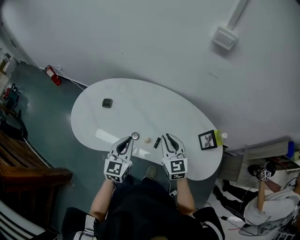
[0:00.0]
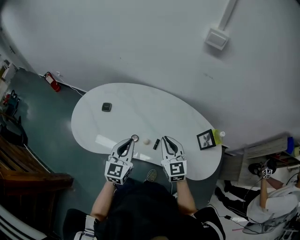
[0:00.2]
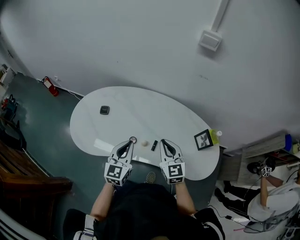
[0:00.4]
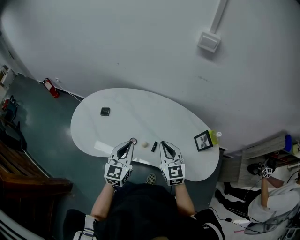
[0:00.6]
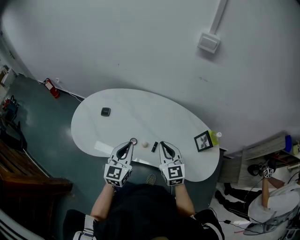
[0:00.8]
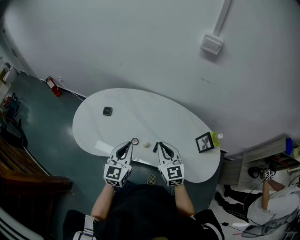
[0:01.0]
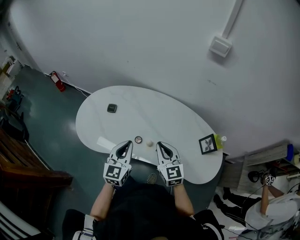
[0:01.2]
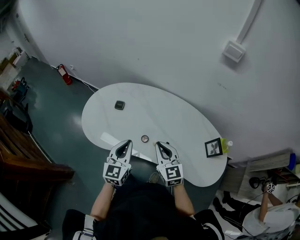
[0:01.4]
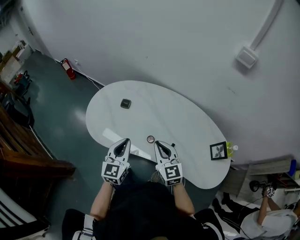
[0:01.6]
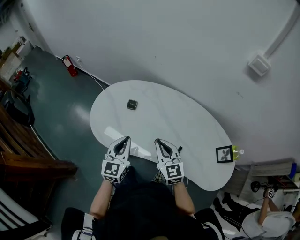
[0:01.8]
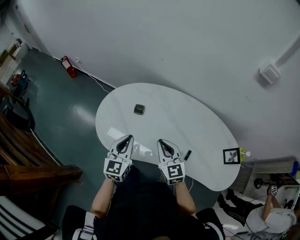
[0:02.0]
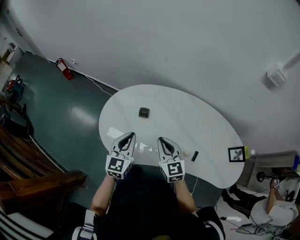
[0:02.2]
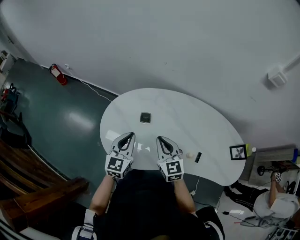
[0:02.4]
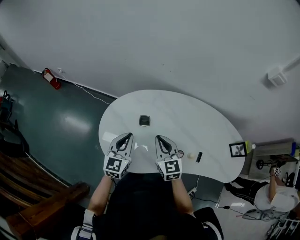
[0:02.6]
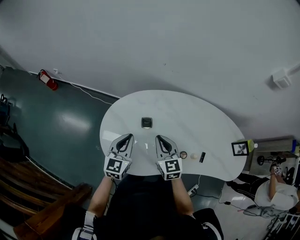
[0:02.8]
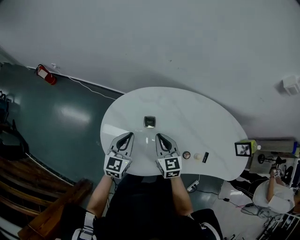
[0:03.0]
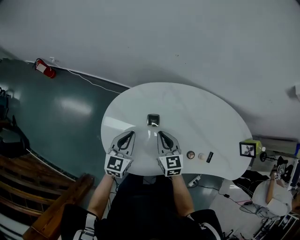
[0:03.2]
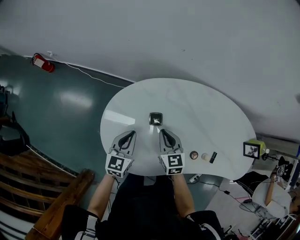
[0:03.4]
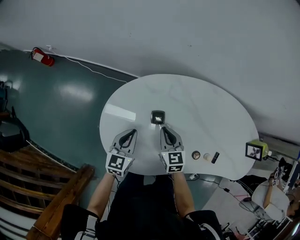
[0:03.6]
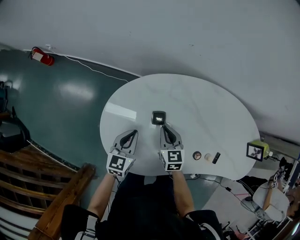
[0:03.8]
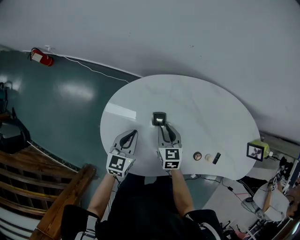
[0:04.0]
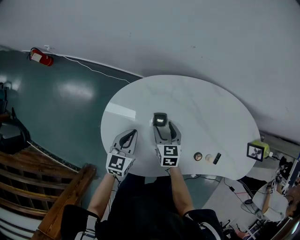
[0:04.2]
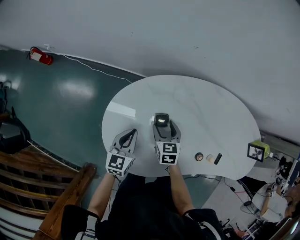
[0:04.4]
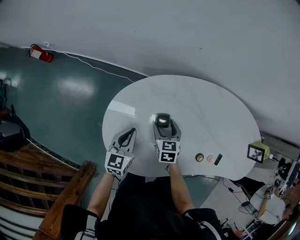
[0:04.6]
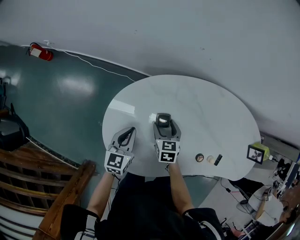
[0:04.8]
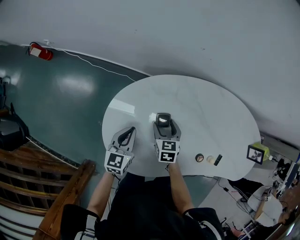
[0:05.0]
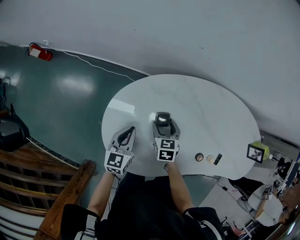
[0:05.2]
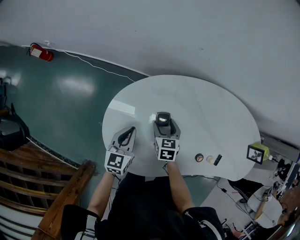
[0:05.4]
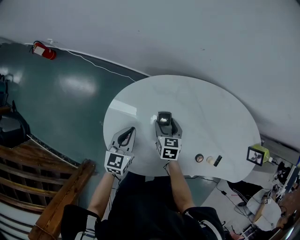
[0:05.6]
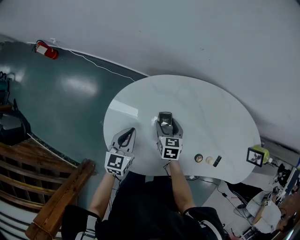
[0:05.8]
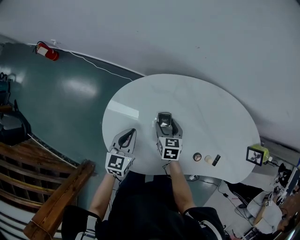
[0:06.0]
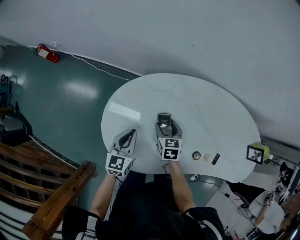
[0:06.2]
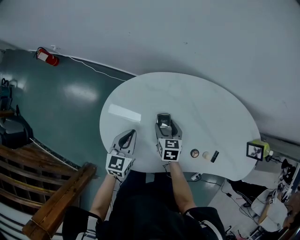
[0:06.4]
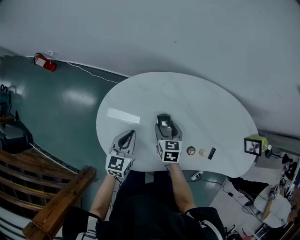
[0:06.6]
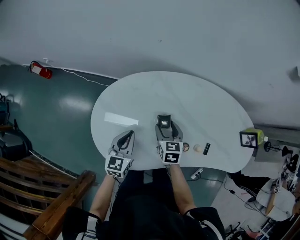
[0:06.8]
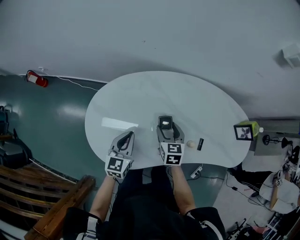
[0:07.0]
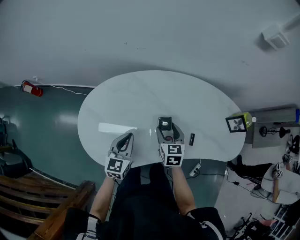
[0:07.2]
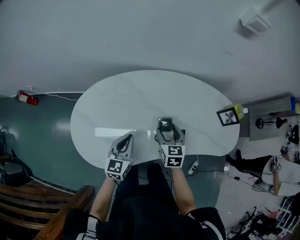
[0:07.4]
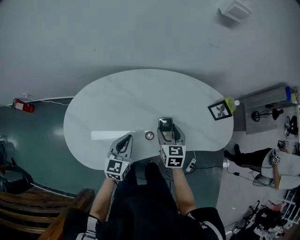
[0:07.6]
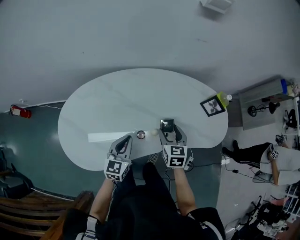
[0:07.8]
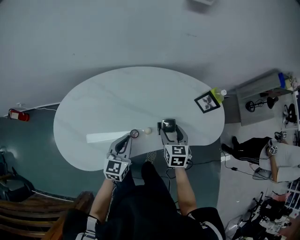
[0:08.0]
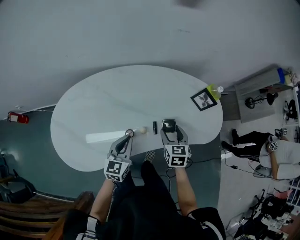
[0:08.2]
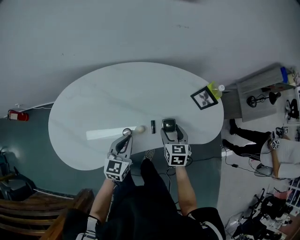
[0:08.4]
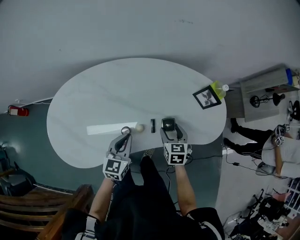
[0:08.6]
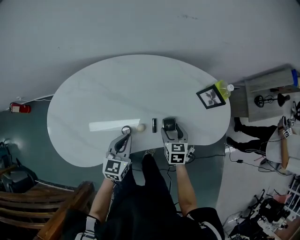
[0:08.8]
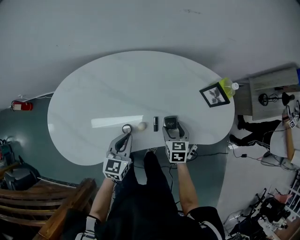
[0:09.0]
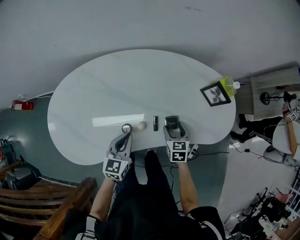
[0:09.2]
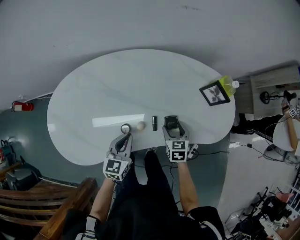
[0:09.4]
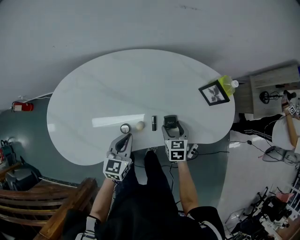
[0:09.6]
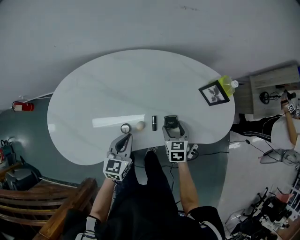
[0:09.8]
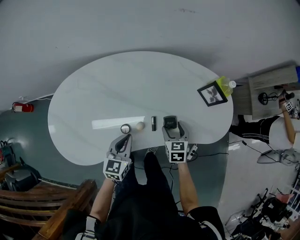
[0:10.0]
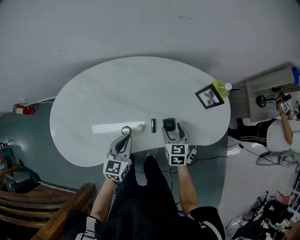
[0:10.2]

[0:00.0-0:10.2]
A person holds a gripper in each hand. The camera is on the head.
0:00.0 to 0:01.4: The left gripper travels to the left by about 5 cm. The right gripper shifts some 10 cm to the left.
0:01.4 to 0:03.0: Both grippers travel together to the left and forward, some 40 cm. The right gripper changes its angle by roughly 20 degrees.
0:03.0 to 0:04.4: Both grippers travel together downward and forward, approximately 15 cm. The right gripper rotates some 20 degrees, and opens up.
0:04.4 to 0:05.8: The grippers stay close to where they were, moving slightly.
0:05.8 to 0:07.2: The left gripper travels to the right by roughly 20 cm, while the right gripper heads to the right, upward and backward, covering about 25 cm.
0:07.2 to 0:08.8: Both grippers travel together to the right, approximately 30 cm.
0:08.8 to 0:10.2: There are only small adjustments of the grippers.

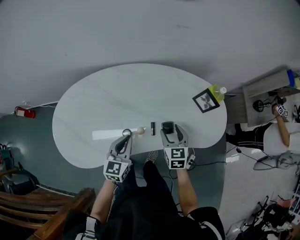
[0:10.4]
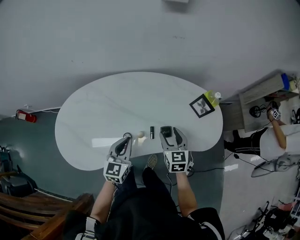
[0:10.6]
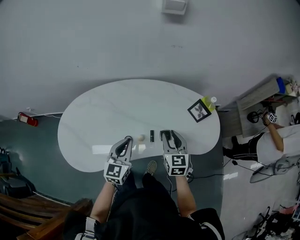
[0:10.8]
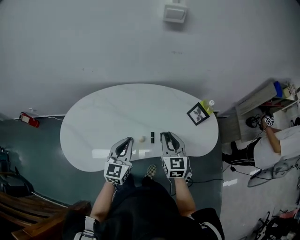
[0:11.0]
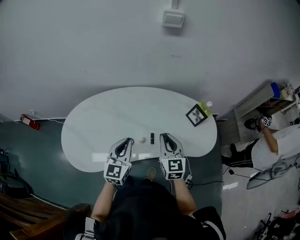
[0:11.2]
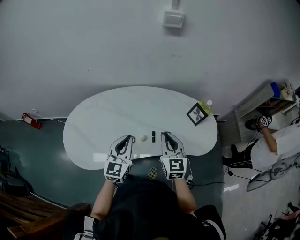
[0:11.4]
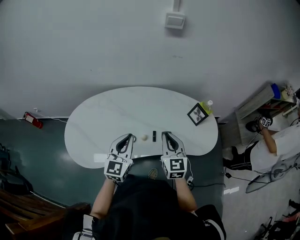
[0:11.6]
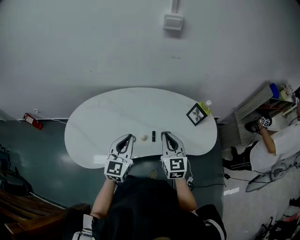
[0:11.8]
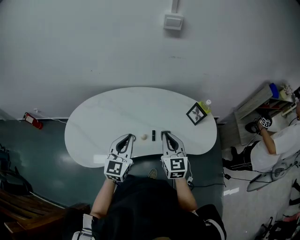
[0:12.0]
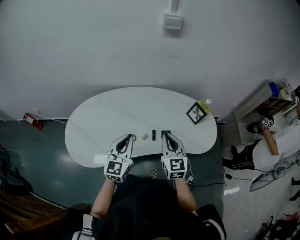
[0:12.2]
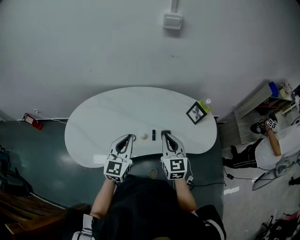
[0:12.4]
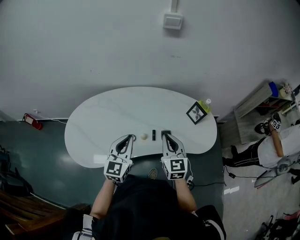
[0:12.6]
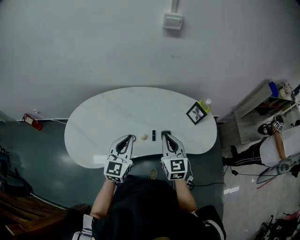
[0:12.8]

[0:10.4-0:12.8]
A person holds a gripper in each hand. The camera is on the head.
0:10.4 to 0:11.6: The left gripper goes approximately 15 cm upward; the right gripper moves upward and backward, roughly 20 cm, changes its angle by approximately 20 degrees, and closes up.
0:11.6 to 0:12.8: The grippers make only small movements.

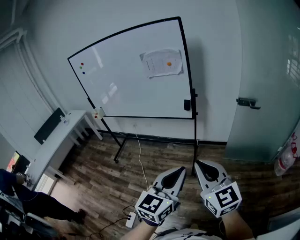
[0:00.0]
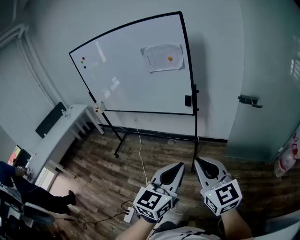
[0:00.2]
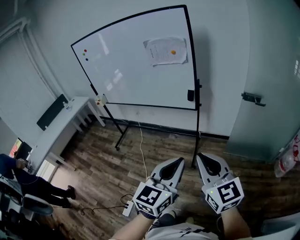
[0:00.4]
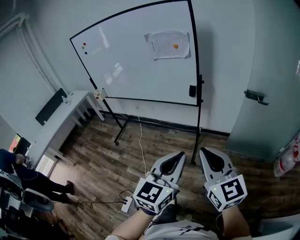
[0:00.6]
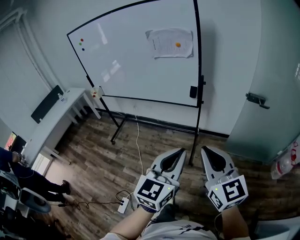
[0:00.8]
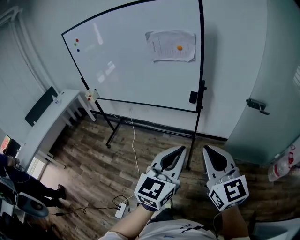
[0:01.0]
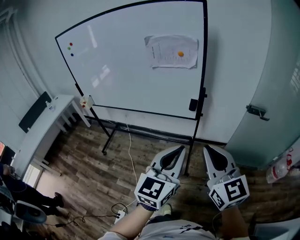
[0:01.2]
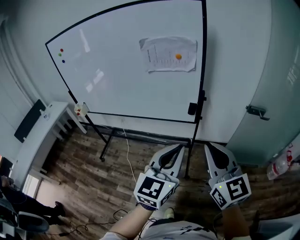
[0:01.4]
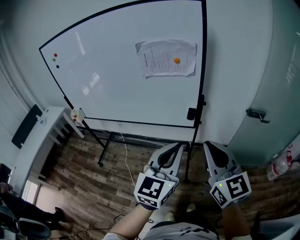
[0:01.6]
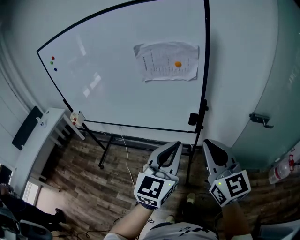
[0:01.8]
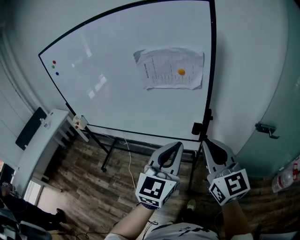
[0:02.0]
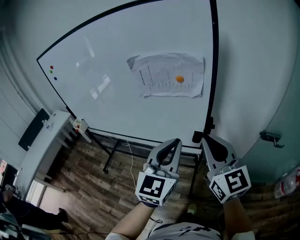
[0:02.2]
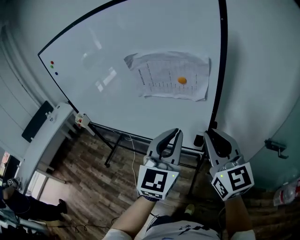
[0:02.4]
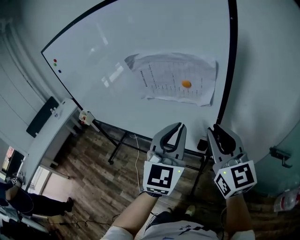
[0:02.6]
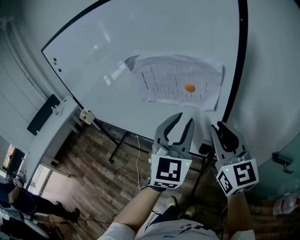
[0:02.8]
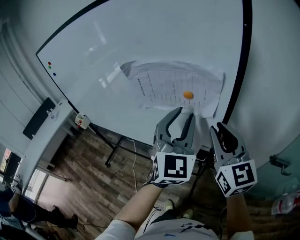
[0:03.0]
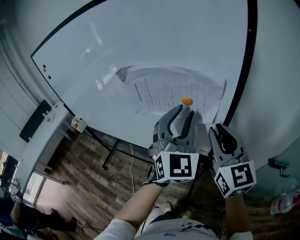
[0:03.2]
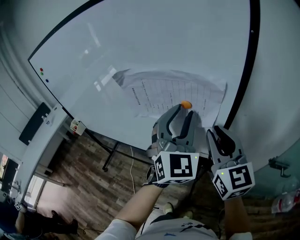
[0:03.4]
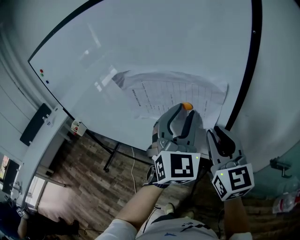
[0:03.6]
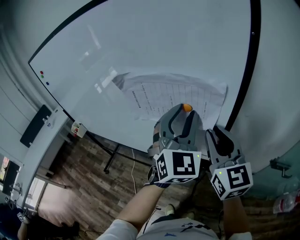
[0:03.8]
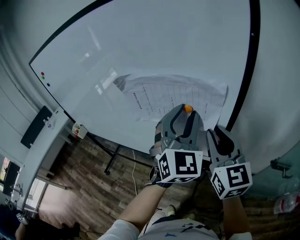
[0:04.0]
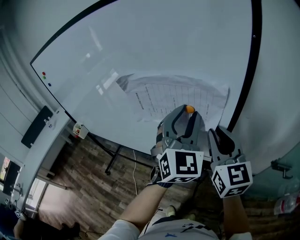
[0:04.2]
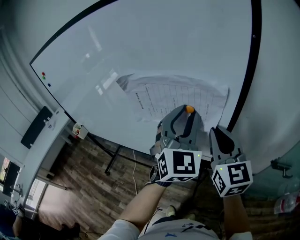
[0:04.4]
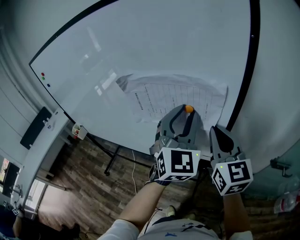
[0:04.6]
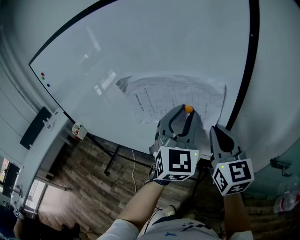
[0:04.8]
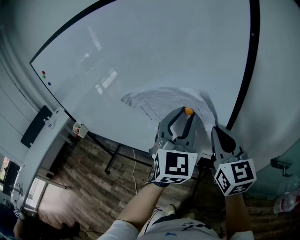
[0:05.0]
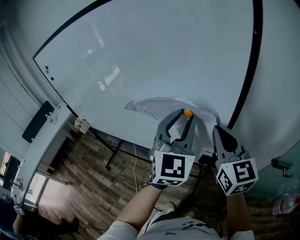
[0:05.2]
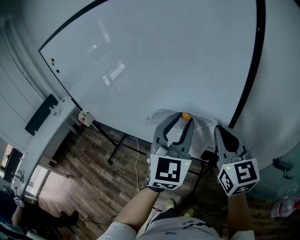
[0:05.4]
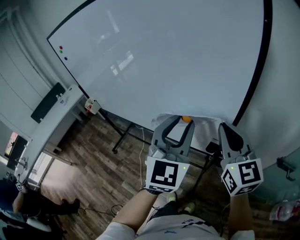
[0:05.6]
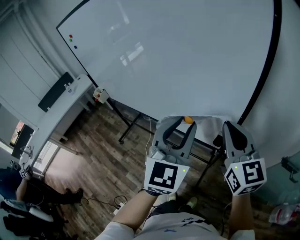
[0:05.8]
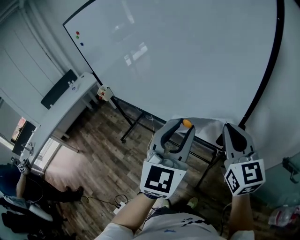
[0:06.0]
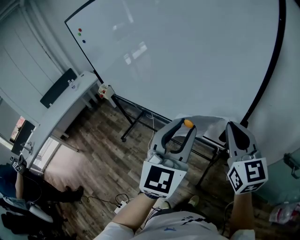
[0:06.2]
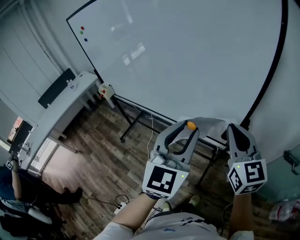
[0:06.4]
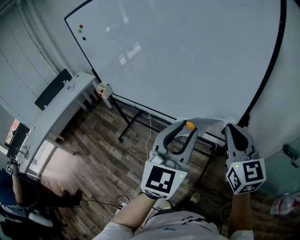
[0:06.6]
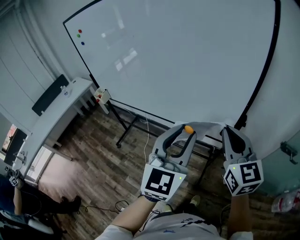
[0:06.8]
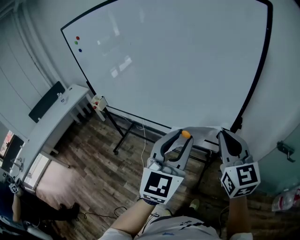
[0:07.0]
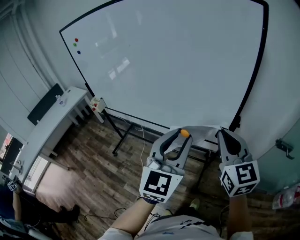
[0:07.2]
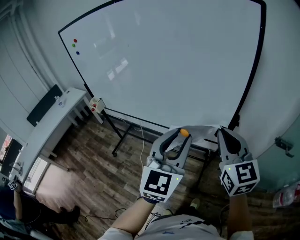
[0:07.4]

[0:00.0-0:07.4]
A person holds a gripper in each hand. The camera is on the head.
0:00.0 to 0:01.4: Both grippers travel together forward, approximately 25 cm.
0:01.4 to 0:03.0: Both grippers are carried forward, some 40 cm. The left gripper changes its angle by about 40 degrees, and opens its fingers.
0:03.0 to 0:04.4: The left gripper heads forward, covering some 5 cm.
0:04.4 to 0:06.0: The right gripper is displaced backward and to the left by roughly 10 cm; the left gripper moves backward and to the left, about 20 cm.
0:06.0 to 0:07.4: The two grippers go about 10 cm backward and to the left.

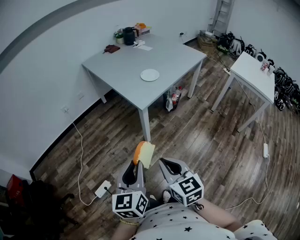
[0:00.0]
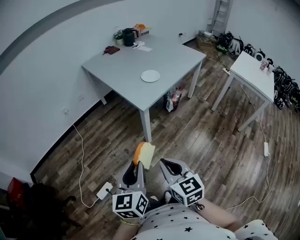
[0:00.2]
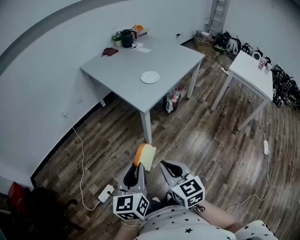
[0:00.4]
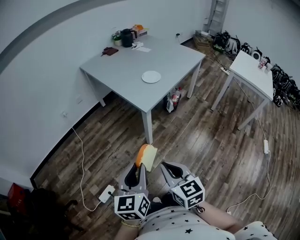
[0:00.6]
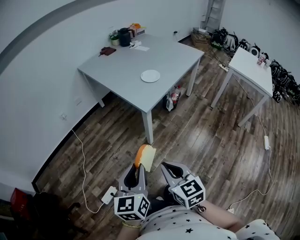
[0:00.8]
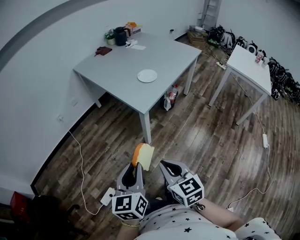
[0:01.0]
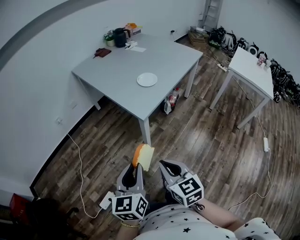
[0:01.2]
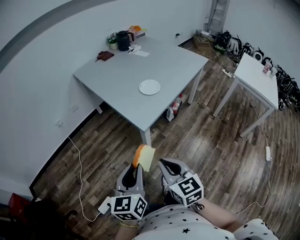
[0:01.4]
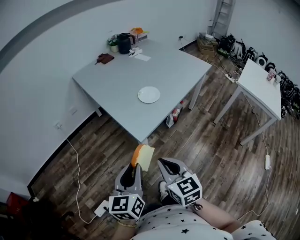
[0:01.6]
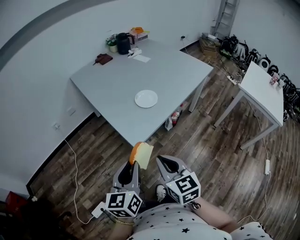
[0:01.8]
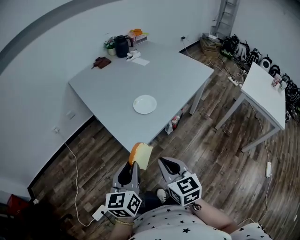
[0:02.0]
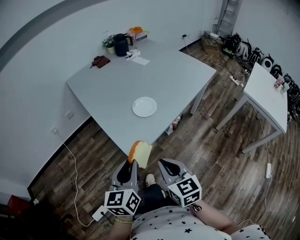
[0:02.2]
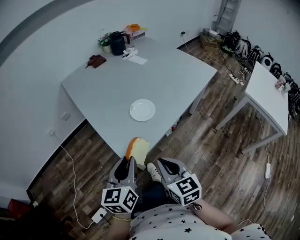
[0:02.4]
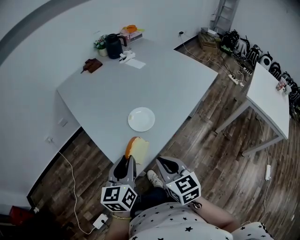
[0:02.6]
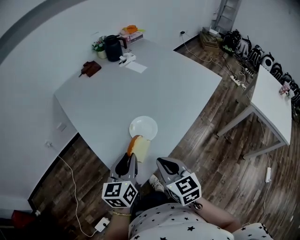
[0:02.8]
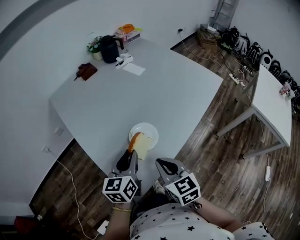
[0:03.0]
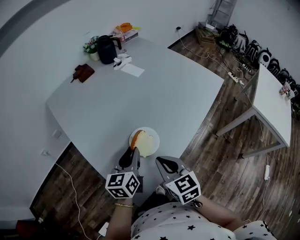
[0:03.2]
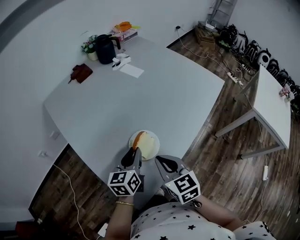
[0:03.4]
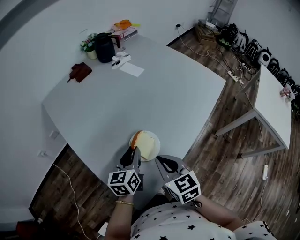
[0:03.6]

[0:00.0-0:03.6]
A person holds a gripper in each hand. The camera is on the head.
0:00.0 to 0:01.8: The grippers both shift forward by approximately 25 cm.
0:01.8 to 0:03.6: The two grippers go about 40 cm forward.
